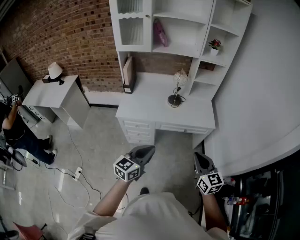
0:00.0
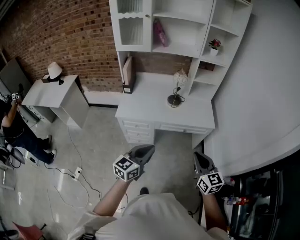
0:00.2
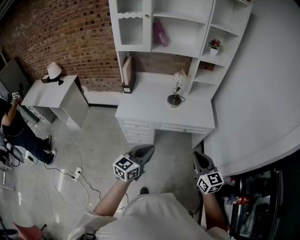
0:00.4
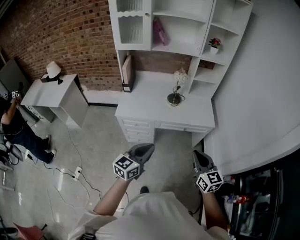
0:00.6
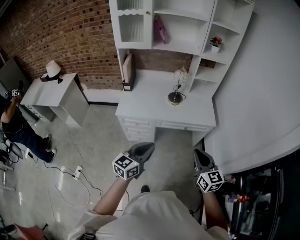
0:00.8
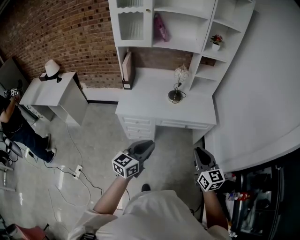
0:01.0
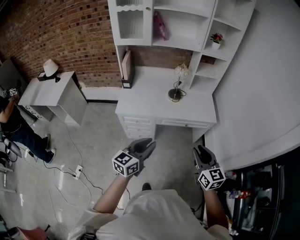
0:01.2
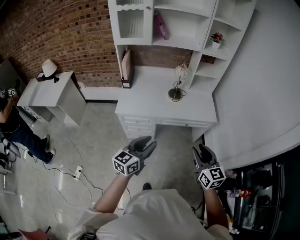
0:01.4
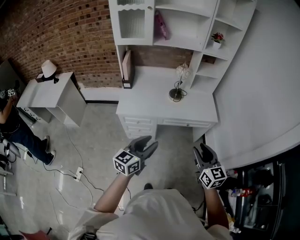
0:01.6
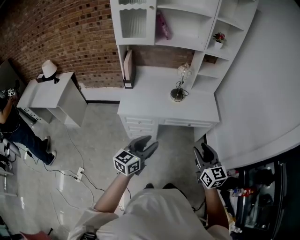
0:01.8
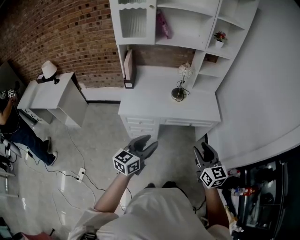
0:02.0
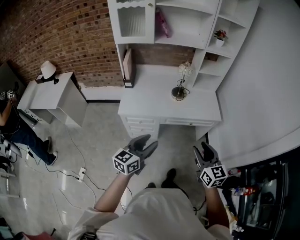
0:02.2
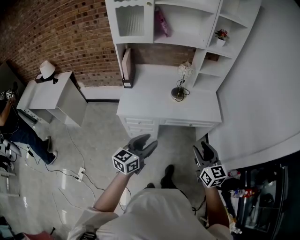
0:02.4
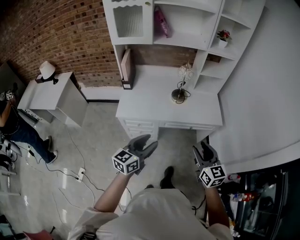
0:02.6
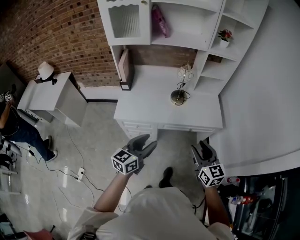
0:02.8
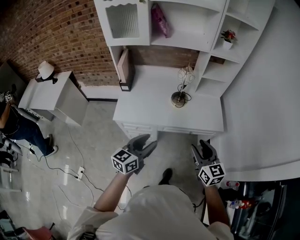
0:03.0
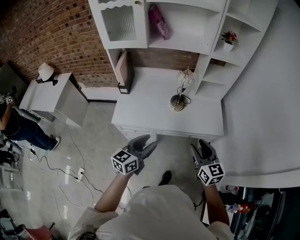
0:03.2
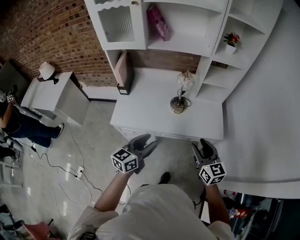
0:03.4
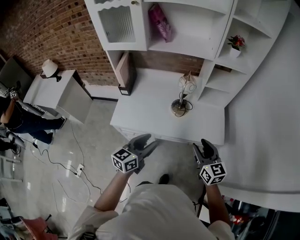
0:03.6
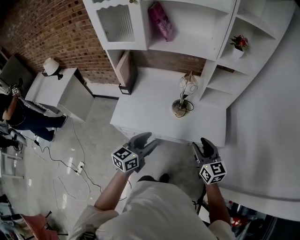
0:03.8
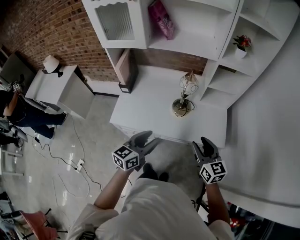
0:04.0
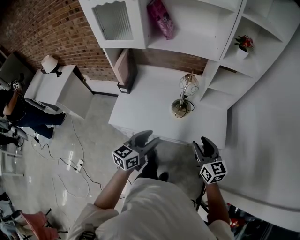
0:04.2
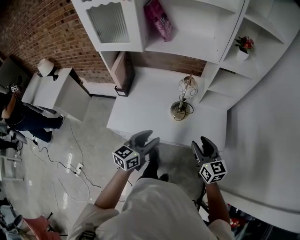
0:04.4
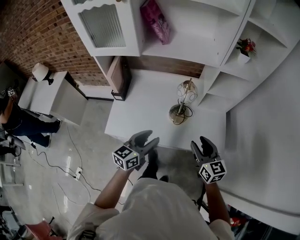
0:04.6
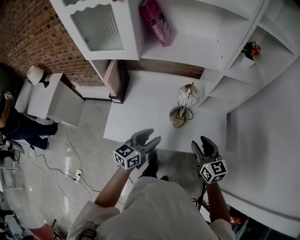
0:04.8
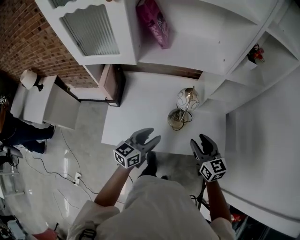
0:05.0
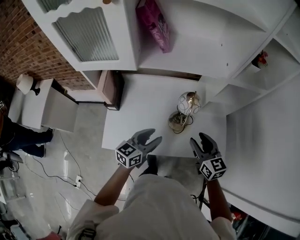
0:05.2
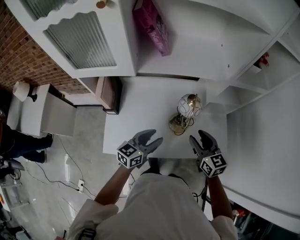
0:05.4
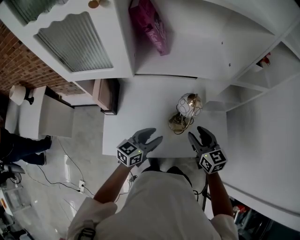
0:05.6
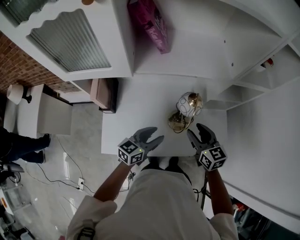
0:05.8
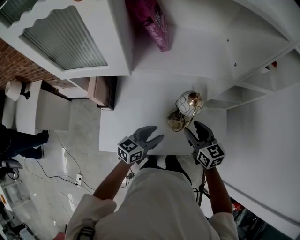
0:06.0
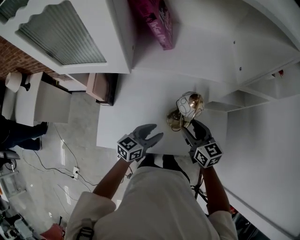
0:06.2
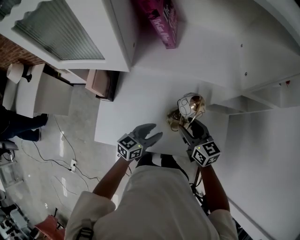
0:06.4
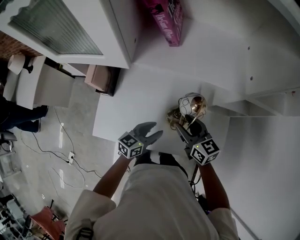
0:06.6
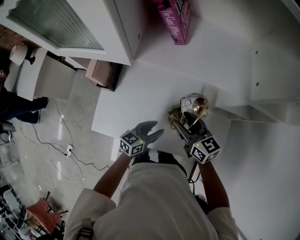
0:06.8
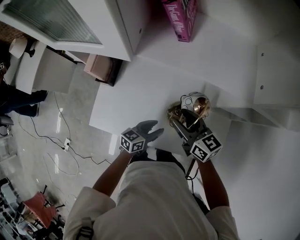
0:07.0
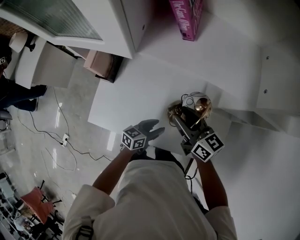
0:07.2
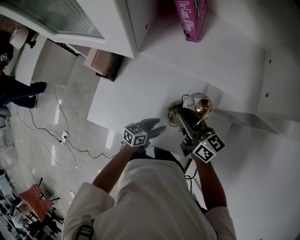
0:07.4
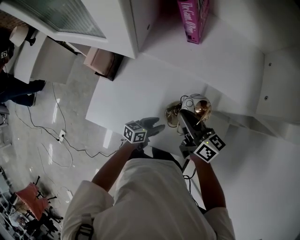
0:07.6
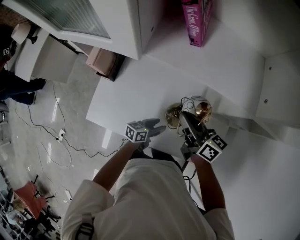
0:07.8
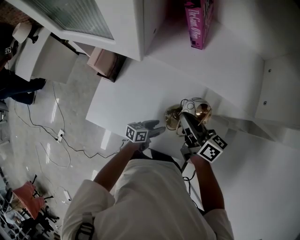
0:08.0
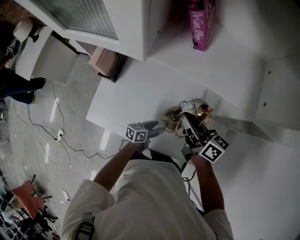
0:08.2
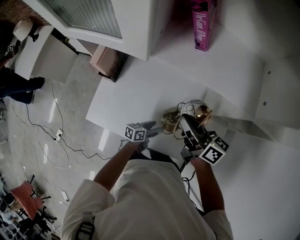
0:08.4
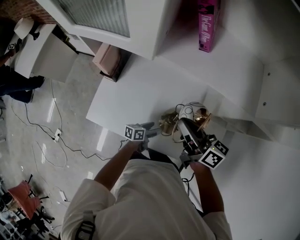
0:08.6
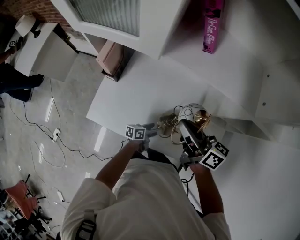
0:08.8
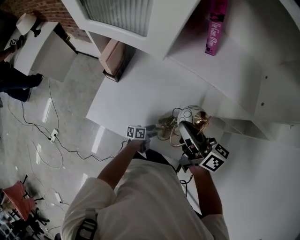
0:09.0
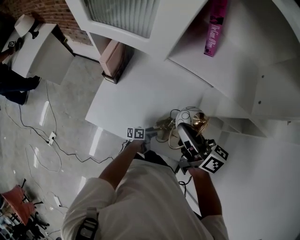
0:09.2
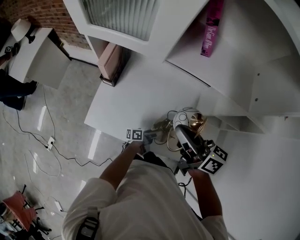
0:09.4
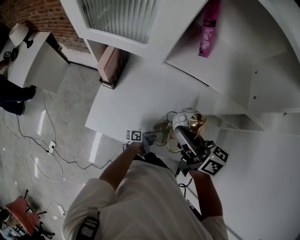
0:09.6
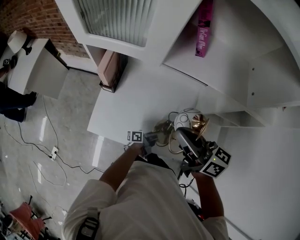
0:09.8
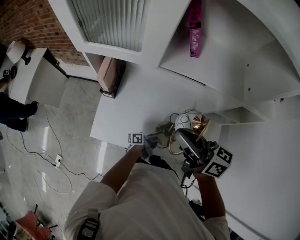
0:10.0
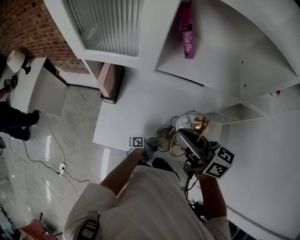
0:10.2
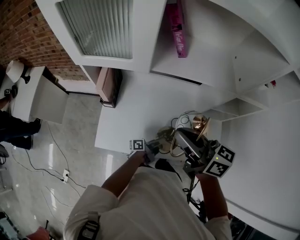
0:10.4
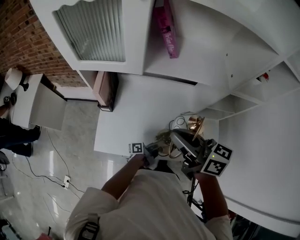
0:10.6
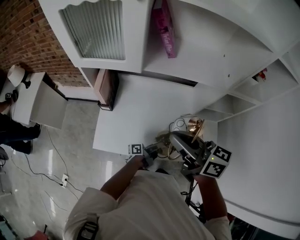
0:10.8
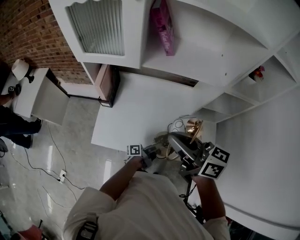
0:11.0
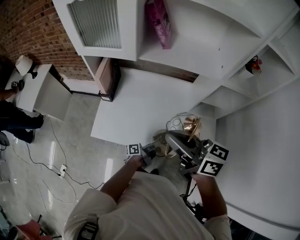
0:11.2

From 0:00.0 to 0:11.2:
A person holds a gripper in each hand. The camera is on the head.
From 0:00.0 to 0:01.6: The grippers both shift to the left by approximately 5 cm. The left gripper opens, while the right gripper opens its fingers.
From 0:01.6 to 0:03.2: Both grippers travel together forward, approximately 20 cm.
From 0:03.2 to 0:04.8: The grippers both shift forward by some 25 cm.
From 0:04.8 to 0:06.4: The right gripper travels forward and to the left by roughly 20 cm, while the left gripper is displaced forward and downward by roughly 20 cm.
From 0:06.4 to 0:08.0: The left gripper heads downward, covering approximately 15 cm, and swivels some 30 degrees, while the right gripper moves forward, roughly 5 cm, rotates about 30 degrees, and closes.
From 0:08.0 to 0:09.6: The right gripper shifts about 15 cm upward, backward and to the left. The left gripper changes its angle by approximately 40 degrees.
From 0:09.6 to 0:11.2: The left gripper moves upward and backward, roughly 15 cm. The right gripper travels backward and upward by some 15 cm.

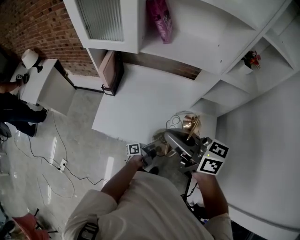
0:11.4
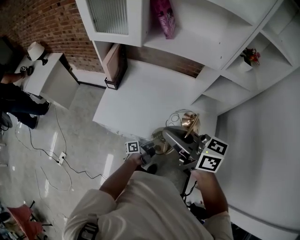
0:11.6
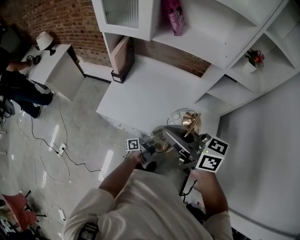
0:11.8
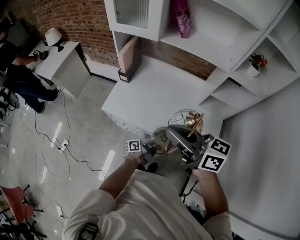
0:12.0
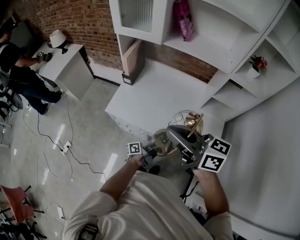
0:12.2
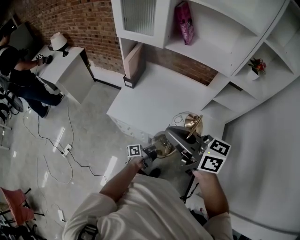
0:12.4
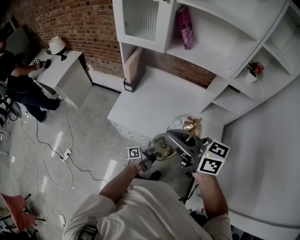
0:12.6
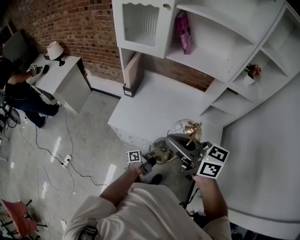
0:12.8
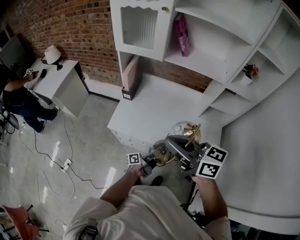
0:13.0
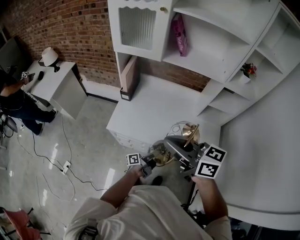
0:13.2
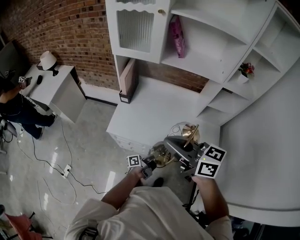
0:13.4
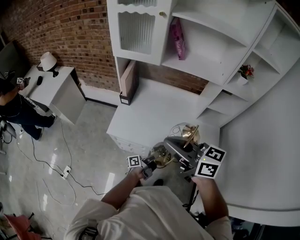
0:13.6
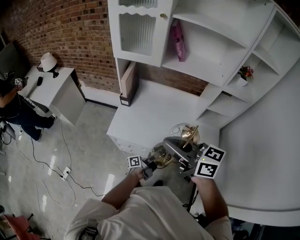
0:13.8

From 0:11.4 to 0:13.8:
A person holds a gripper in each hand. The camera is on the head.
From 0:11.4 to 0:12.6: Both grippers move backward and to the left, some 10 cm.
From 0:12.6 to 0:13.8: The right gripper moves to the left, roughly 5 cm.

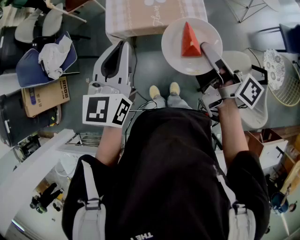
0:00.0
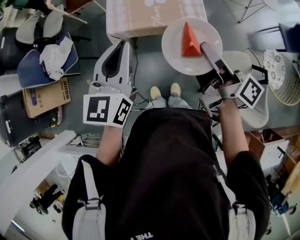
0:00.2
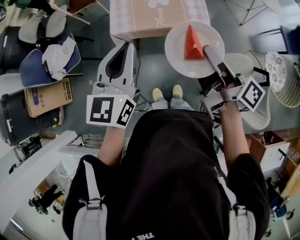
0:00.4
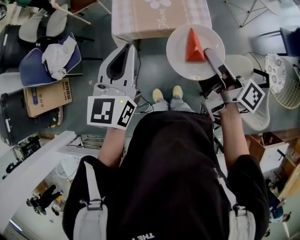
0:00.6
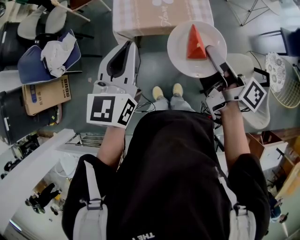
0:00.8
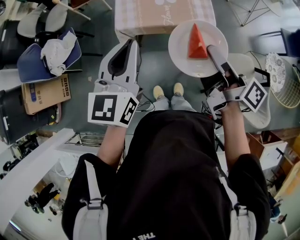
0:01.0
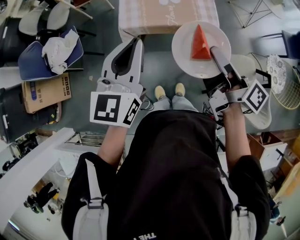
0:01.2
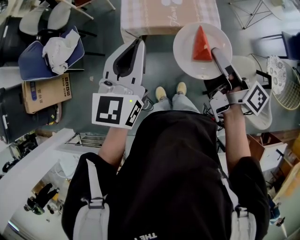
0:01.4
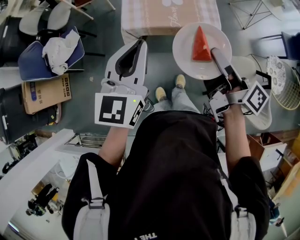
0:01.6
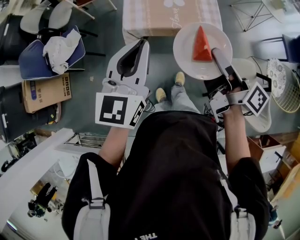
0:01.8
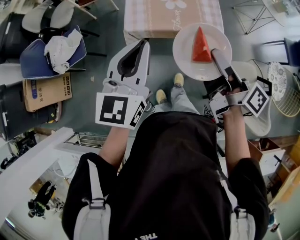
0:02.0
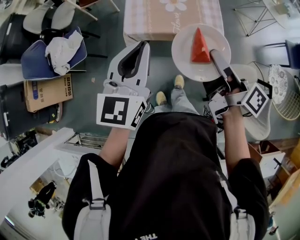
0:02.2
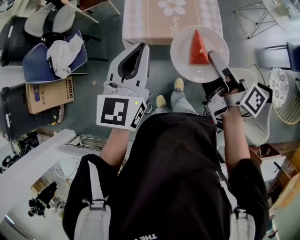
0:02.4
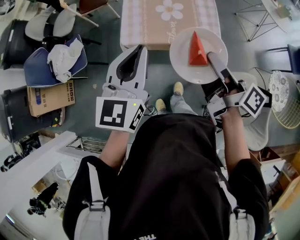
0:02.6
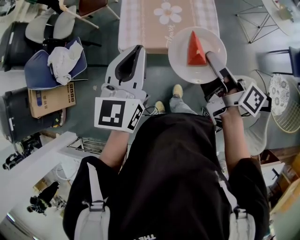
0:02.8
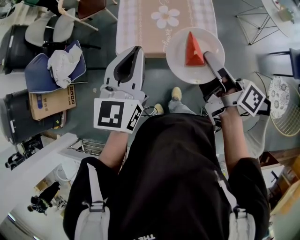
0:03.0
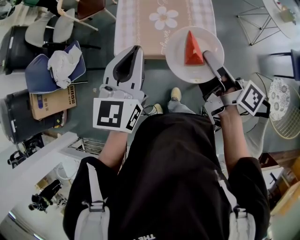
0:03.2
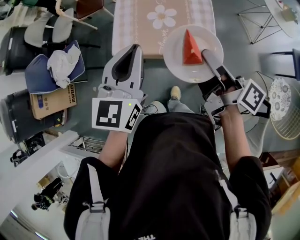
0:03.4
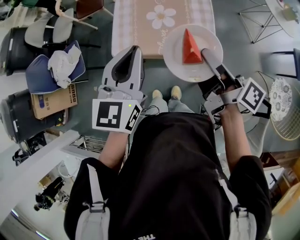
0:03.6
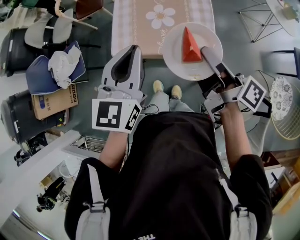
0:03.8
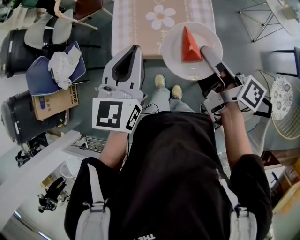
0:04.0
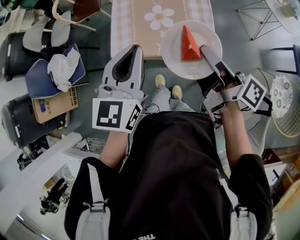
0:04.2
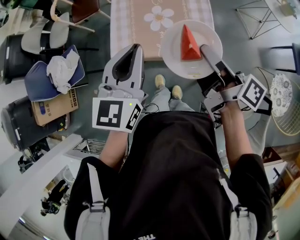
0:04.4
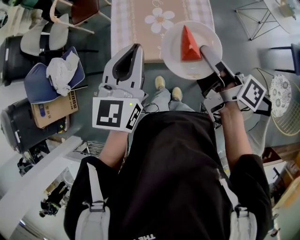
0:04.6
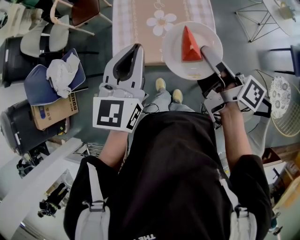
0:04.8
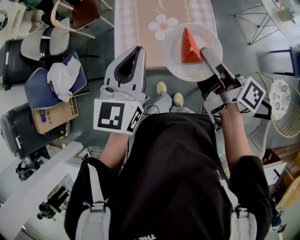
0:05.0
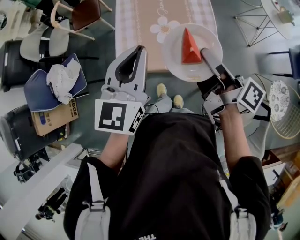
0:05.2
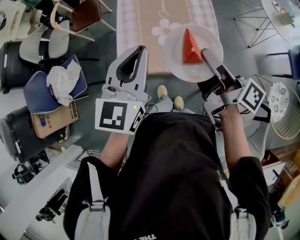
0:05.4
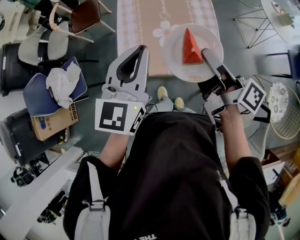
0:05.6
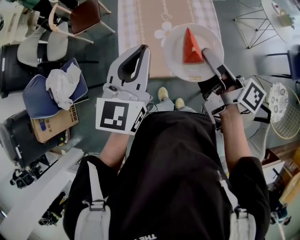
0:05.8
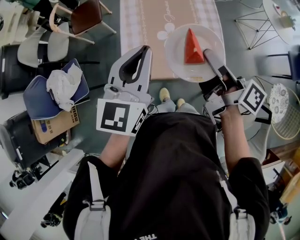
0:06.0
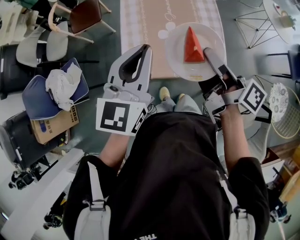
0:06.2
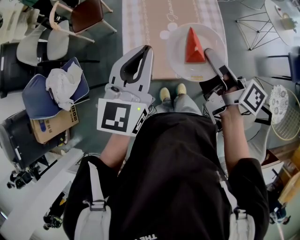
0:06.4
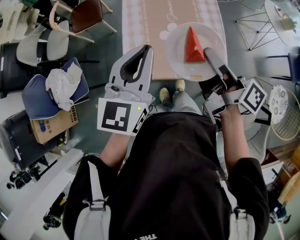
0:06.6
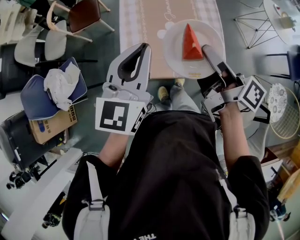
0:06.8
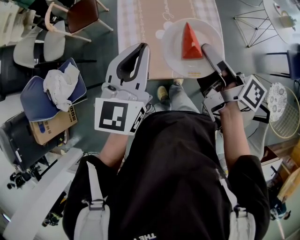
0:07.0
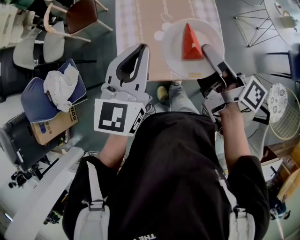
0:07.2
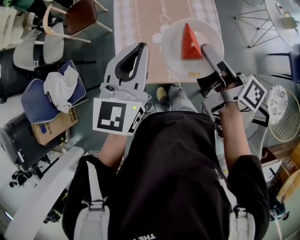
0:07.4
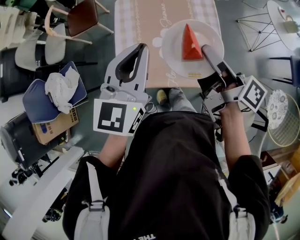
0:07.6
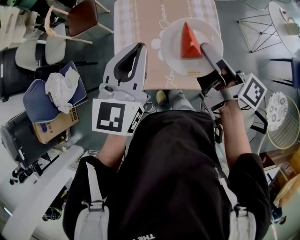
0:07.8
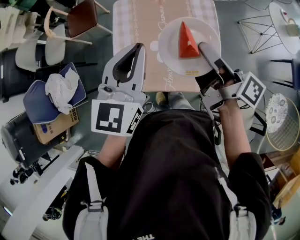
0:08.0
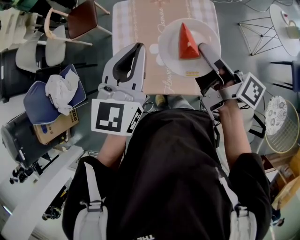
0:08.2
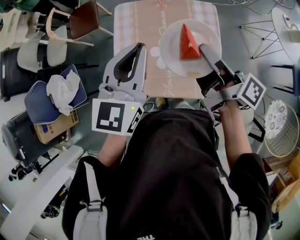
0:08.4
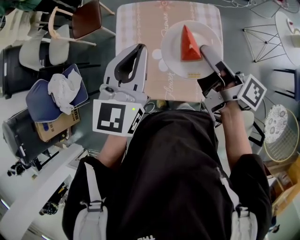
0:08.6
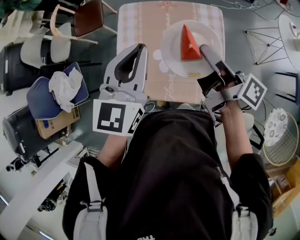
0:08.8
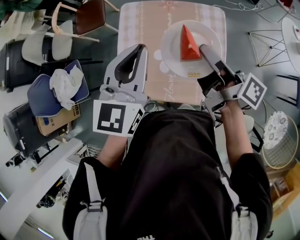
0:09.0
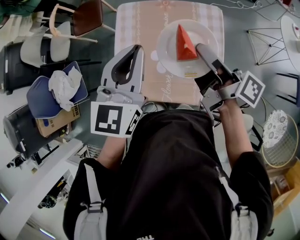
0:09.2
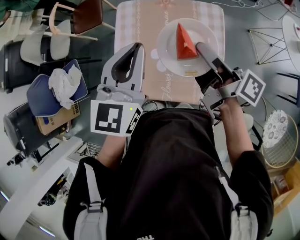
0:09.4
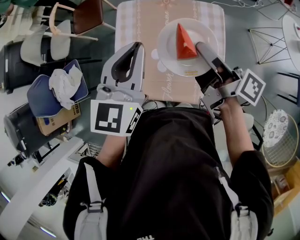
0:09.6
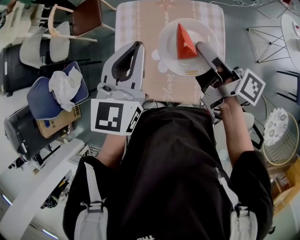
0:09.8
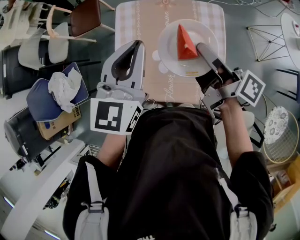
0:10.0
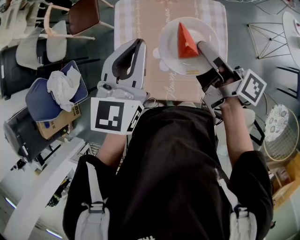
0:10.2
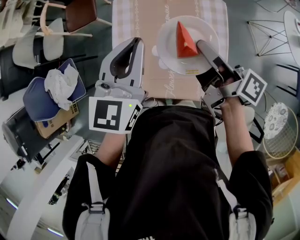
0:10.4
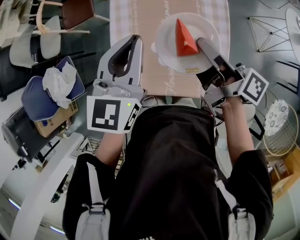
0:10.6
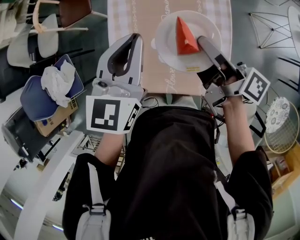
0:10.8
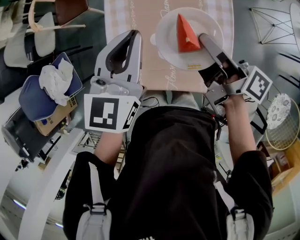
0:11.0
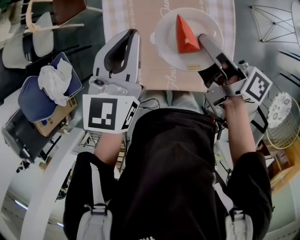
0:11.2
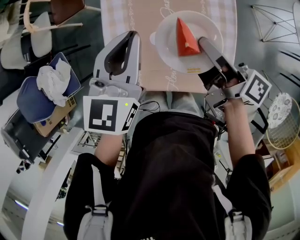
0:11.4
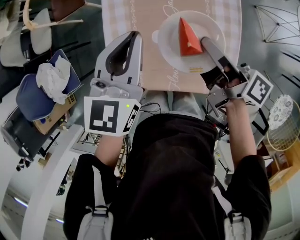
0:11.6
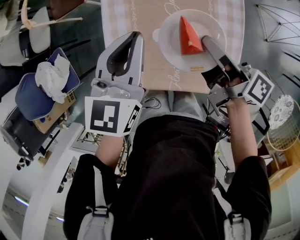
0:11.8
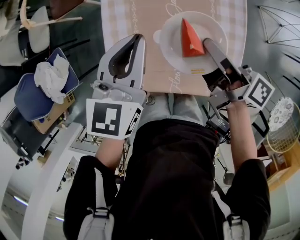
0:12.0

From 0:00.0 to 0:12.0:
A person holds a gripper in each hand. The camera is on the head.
From 0:00.0 to 0:01.6: The grippers both shift to the left by roughly 5 cm.
From 0:01.6 to 0:03.0: The two grippers go some 15 cm forward and to the right.
From 0:03.0 to 0:04.4: The left gripper moves about 5 cm, while the right gripper changes place by some 5 cm.
From 0:04.4 to 0:06.0: The two grippers go roughly 15 cm forward and to the left.
From 0:06.0 to 0:07.6: Both grippers travel together forward, about 10 cm.
From 0:07.6 to 0:09.0: The grippers both shift forward by roughly 10 cm.
From 0:09.0 to 0:10.4: The left gripper moves roughly 5 cm.
From 0:10.4 to 0:12.0: Both grippers travel together downward, approximately 10 cm.
